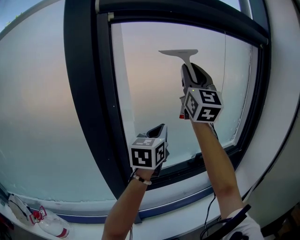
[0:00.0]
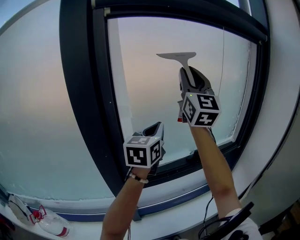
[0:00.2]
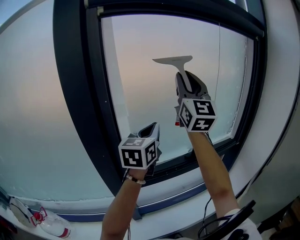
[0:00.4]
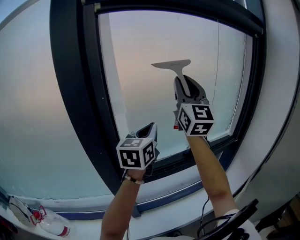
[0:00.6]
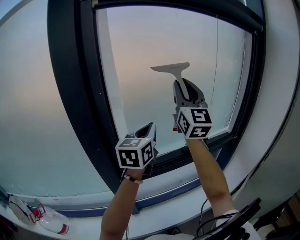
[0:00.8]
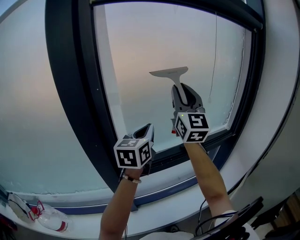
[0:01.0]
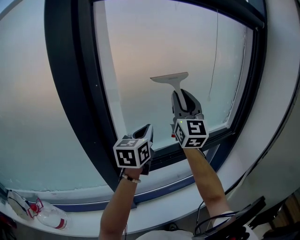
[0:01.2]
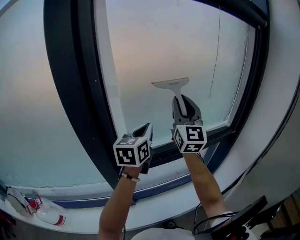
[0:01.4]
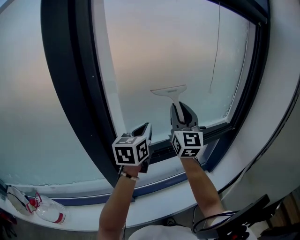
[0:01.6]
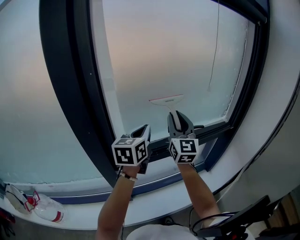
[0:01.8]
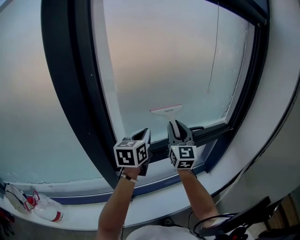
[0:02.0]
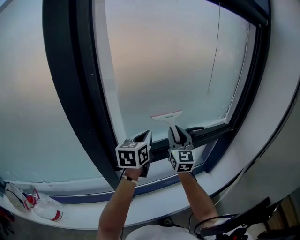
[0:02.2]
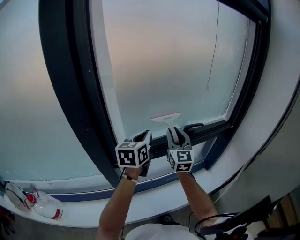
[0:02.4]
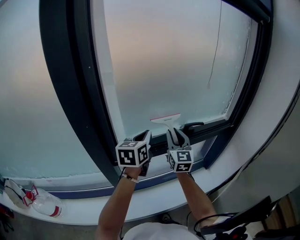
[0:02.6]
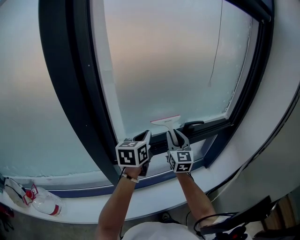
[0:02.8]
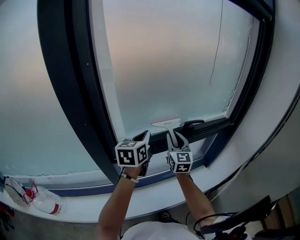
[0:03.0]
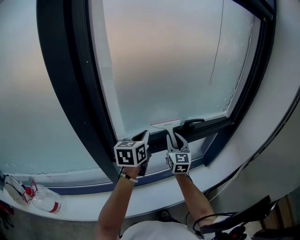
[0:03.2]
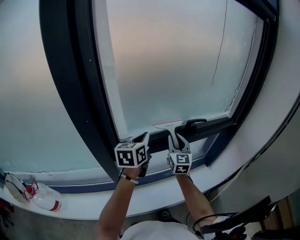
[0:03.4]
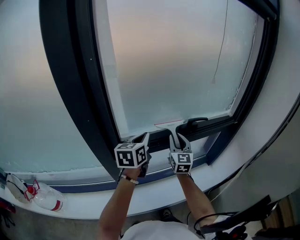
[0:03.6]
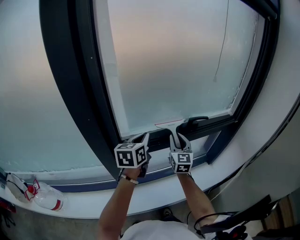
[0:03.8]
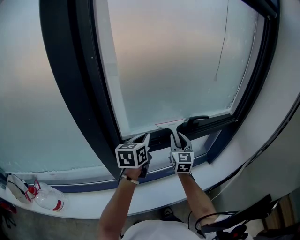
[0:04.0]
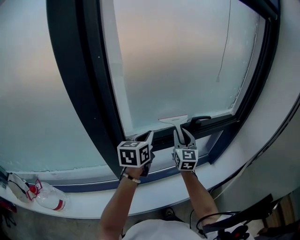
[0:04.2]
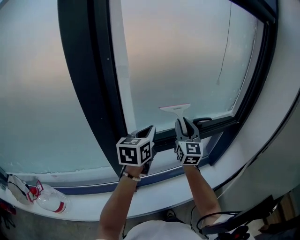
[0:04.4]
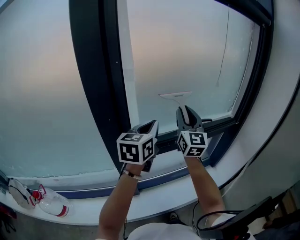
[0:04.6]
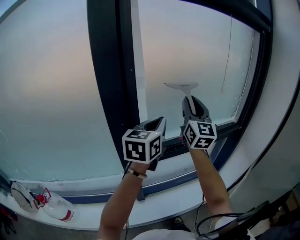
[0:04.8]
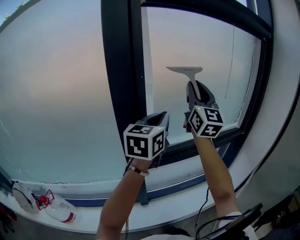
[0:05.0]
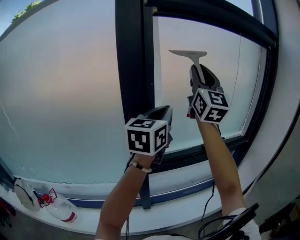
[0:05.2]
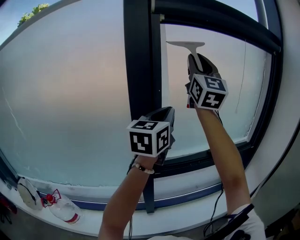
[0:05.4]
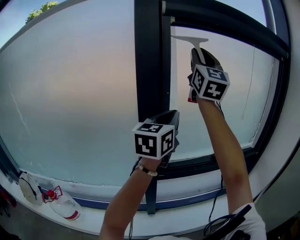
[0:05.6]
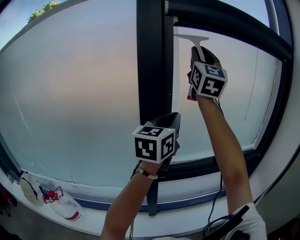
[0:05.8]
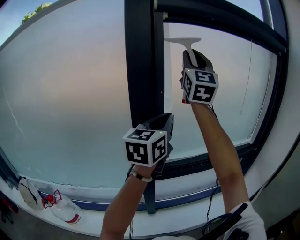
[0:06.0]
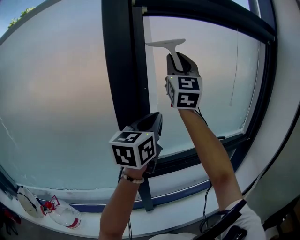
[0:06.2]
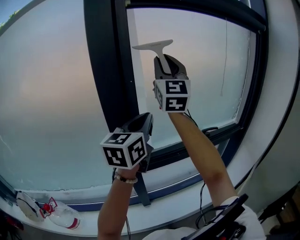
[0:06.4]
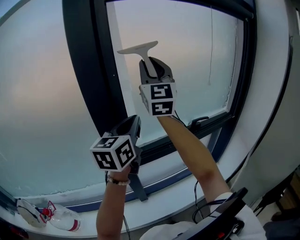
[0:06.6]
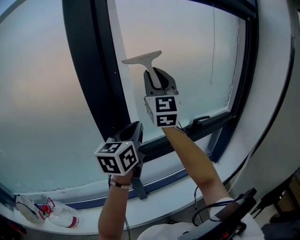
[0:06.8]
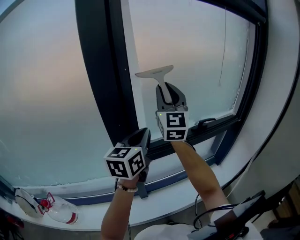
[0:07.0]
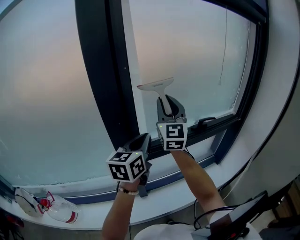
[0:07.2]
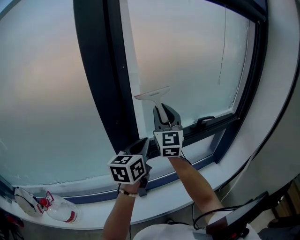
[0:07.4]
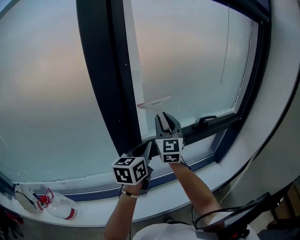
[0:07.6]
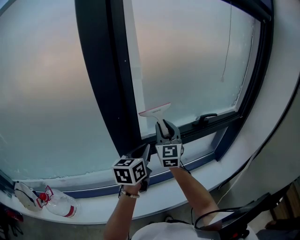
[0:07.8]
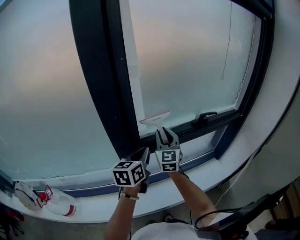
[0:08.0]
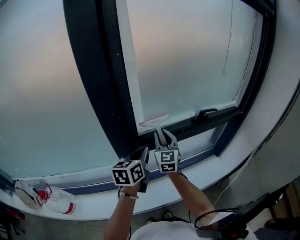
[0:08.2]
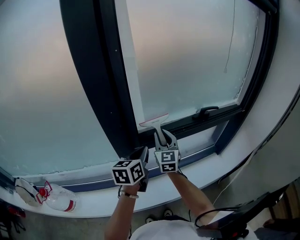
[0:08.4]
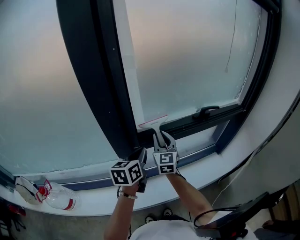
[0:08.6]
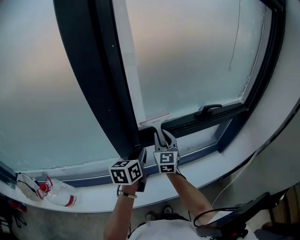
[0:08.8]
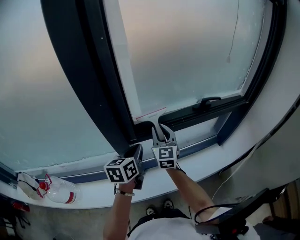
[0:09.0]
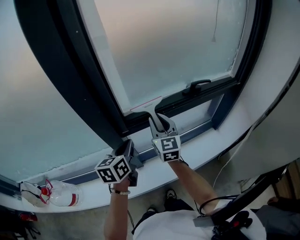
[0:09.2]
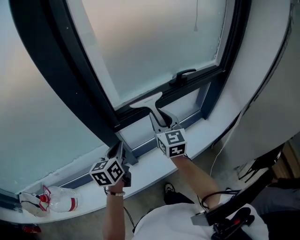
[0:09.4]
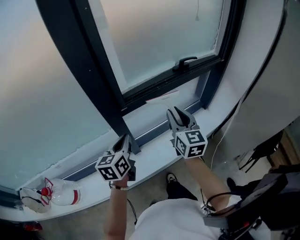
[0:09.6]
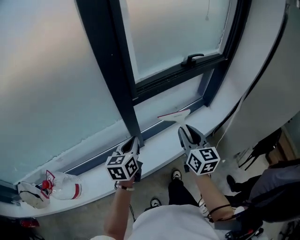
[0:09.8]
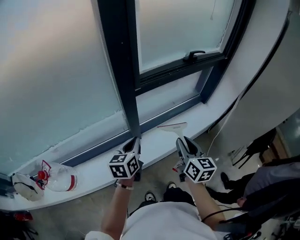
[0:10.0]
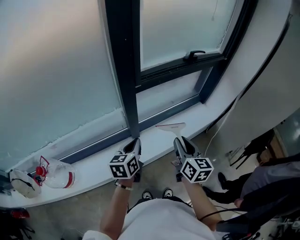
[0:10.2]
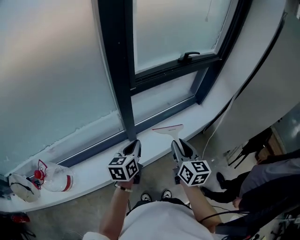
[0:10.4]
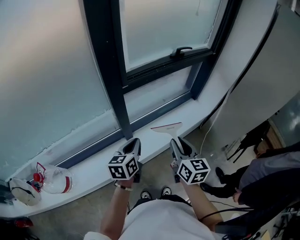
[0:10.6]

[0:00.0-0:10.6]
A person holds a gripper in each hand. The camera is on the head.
0:00.0 to 0:01.6: The left gripper is displaced downward by some 10 cm, while the right gripper is displaced downward by approximately 25 cm.
0:01.6 to 0:03.0: The right gripper shifts some 20 cm downward, and rotates roughly 20 degrees. Meanwhile the left gripper goes about 10 cm downward.
0:03.0 to 0:04.6: The right gripper travels upward by approximately 15 cm, while the left gripper is displaced upward and backward by approximately 10 cm.
0:04.6 to 0:06.0: The left gripper travels upward and to the left by some 20 cm, while the right gripper heads upward, covering roughly 35 cm, and rotates some 20 degrees.
0:06.0 to 0:07.6: The right gripper travels downward by roughly 35 cm, and changes its angle by some 20 degrees. Meanwhile the left gripper moves downward, roughly 25 cm, and turns by roughly 20 degrees.
0:07.6 to 0:09.0: The two grippers go roughly 15 cm downward.
0:09.0 to 0:10.6: The left gripper heads backward, covering roughly 25 cm. Meanwhile the right gripper heads backward, covering some 35 cm, and turns by some 30 degrees.

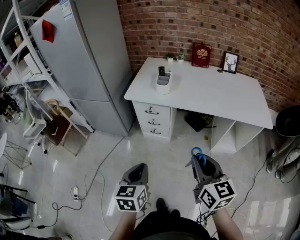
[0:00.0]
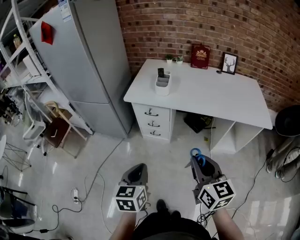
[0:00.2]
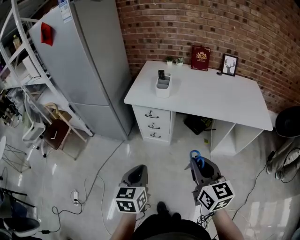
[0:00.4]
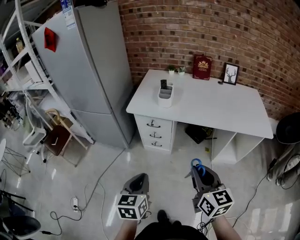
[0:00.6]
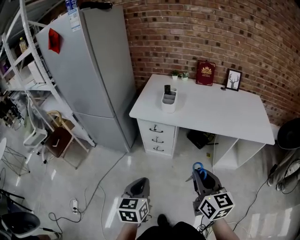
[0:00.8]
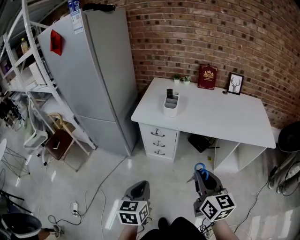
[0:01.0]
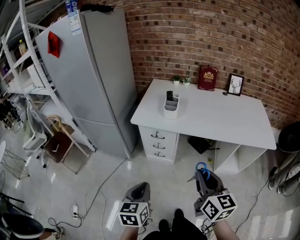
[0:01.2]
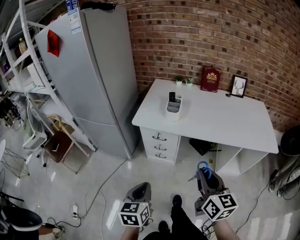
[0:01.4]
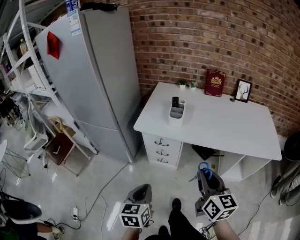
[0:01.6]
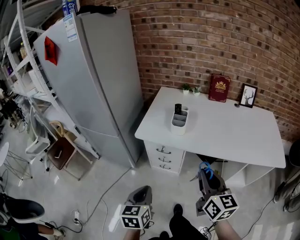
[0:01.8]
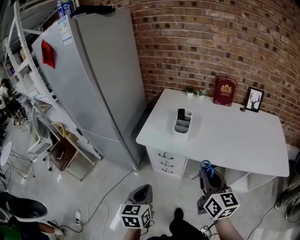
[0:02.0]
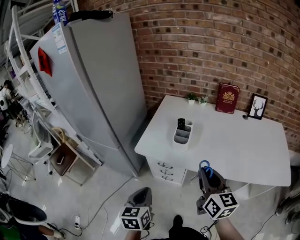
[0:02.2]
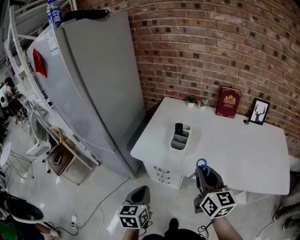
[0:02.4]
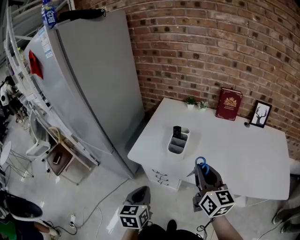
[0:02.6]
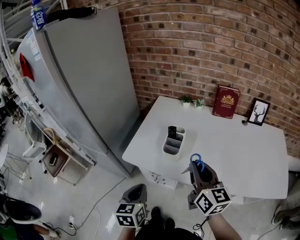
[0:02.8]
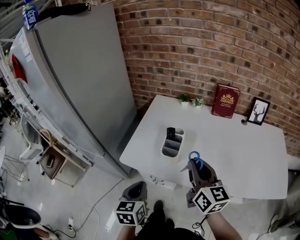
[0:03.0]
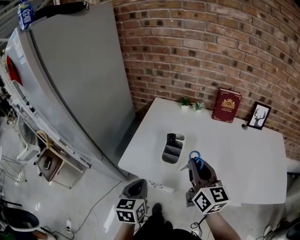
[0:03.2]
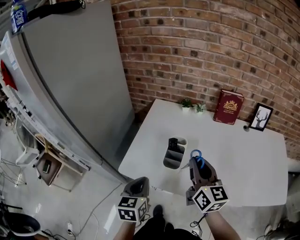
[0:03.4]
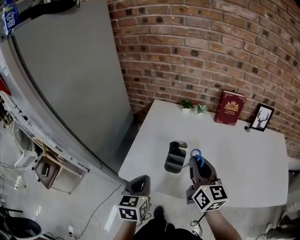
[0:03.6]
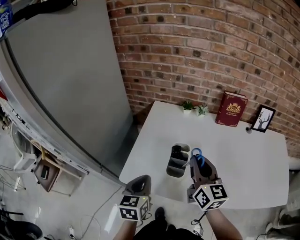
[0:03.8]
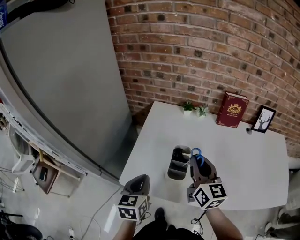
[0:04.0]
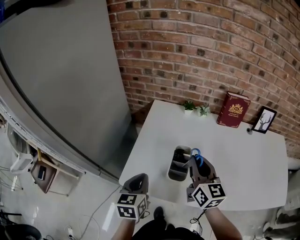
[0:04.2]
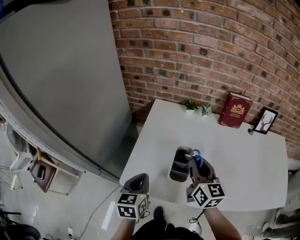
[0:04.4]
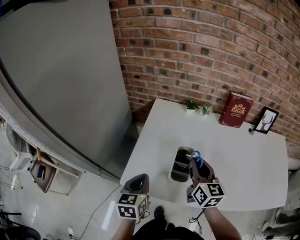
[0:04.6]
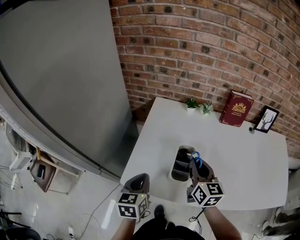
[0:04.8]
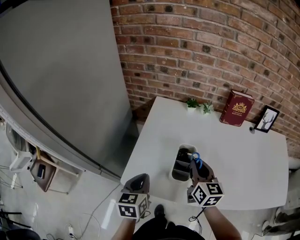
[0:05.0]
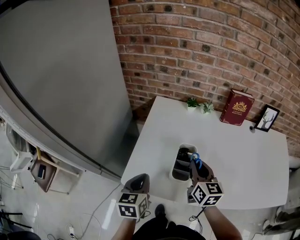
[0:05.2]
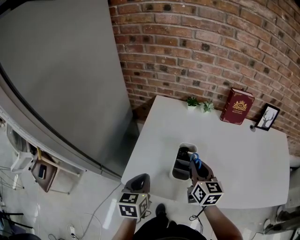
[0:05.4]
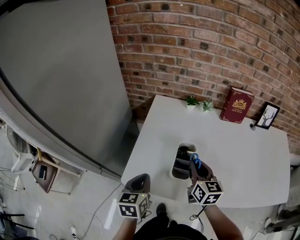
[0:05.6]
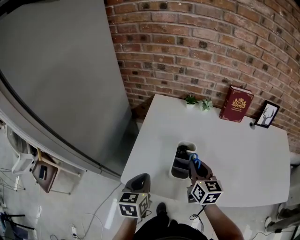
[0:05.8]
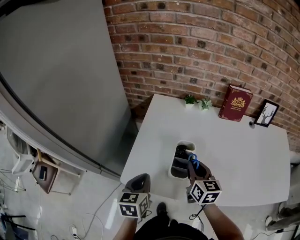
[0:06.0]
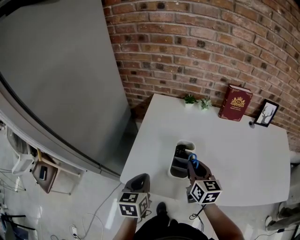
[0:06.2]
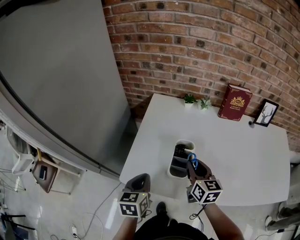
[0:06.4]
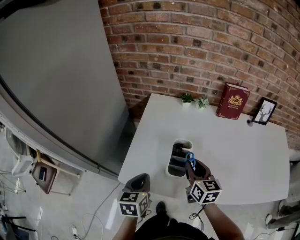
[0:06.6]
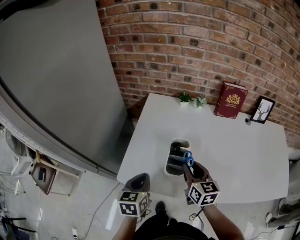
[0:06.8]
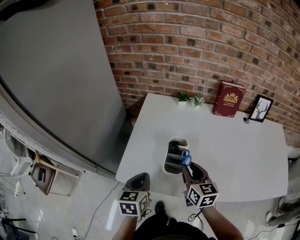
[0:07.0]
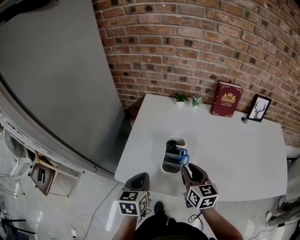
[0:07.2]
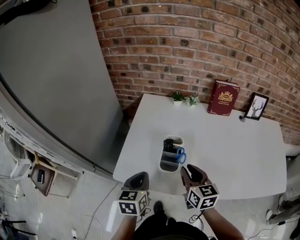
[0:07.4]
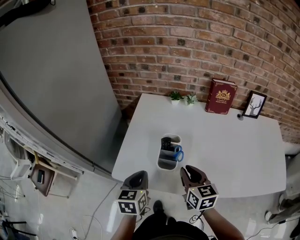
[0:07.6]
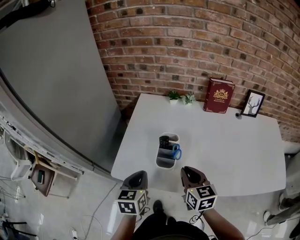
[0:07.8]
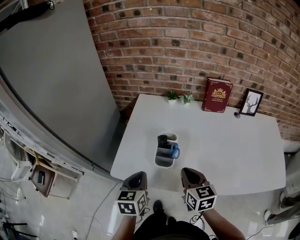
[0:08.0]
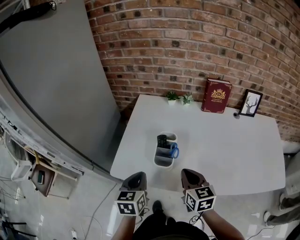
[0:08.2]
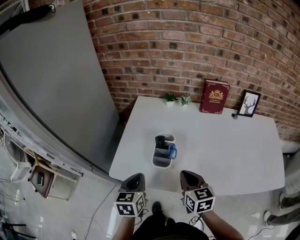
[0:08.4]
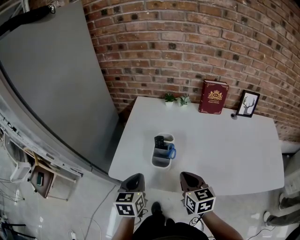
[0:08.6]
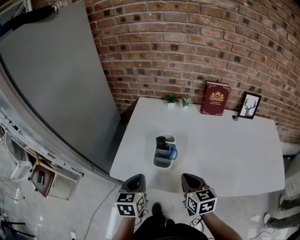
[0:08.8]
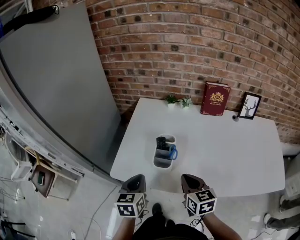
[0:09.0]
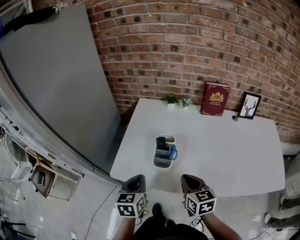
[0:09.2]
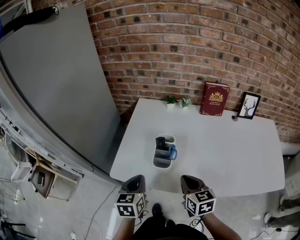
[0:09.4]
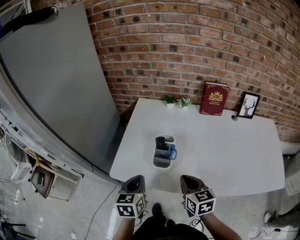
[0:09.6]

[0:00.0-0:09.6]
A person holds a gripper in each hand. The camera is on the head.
0:00.0 to 0:01.6: The two grippers go roughly 10 cm forward.
0:01.6 to 0:03.2: The two grippers go some 35 cm forward.
0:03.2 to 0:04.8: The left gripper travels forward by approximately 15 cm. Meanwhile the right gripper moves forward and downward, some 15 cm.
0:04.8 to 0:06.4: The grippers make only small movements.
0:06.4 to 0:08.0: The left gripper moves roughly 5 cm; the right gripper is displaced backward by approximately 10 cm.
0:08.0 to 0:09.6: The grippers stay close to where they were, moving slightly.

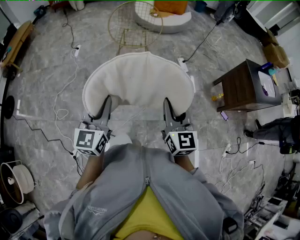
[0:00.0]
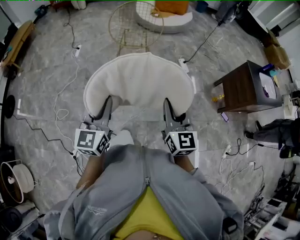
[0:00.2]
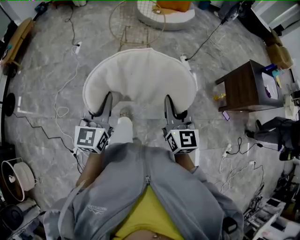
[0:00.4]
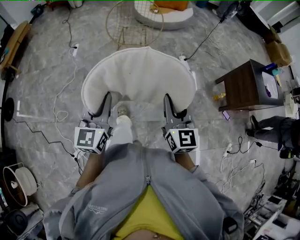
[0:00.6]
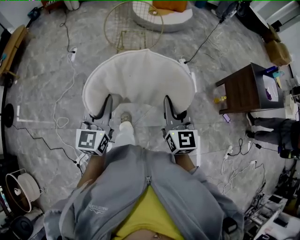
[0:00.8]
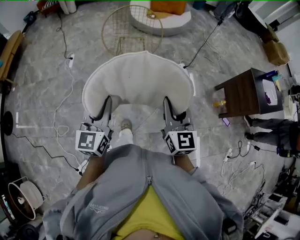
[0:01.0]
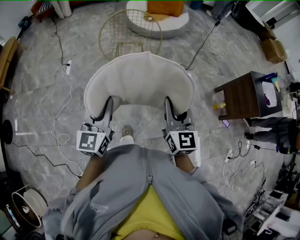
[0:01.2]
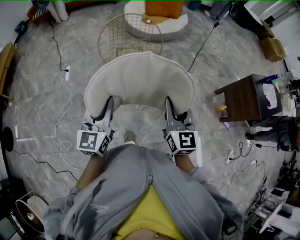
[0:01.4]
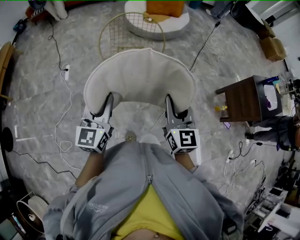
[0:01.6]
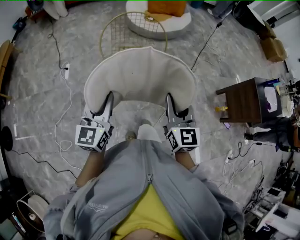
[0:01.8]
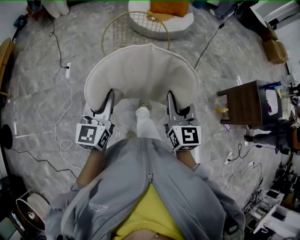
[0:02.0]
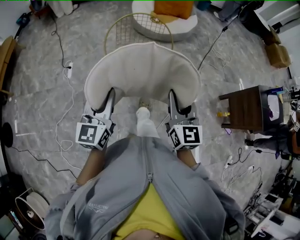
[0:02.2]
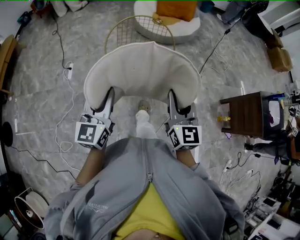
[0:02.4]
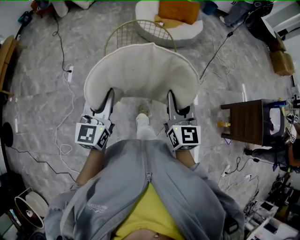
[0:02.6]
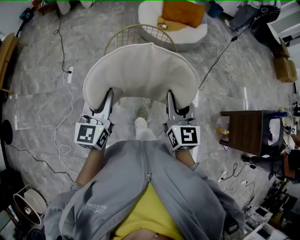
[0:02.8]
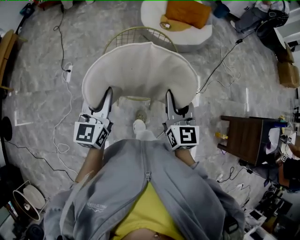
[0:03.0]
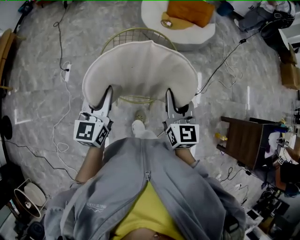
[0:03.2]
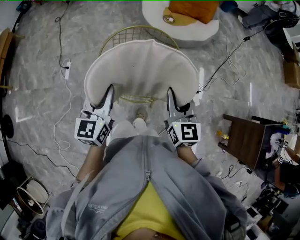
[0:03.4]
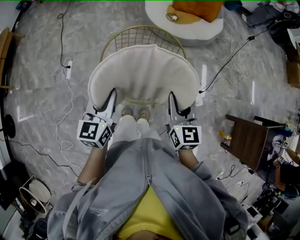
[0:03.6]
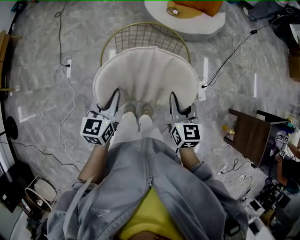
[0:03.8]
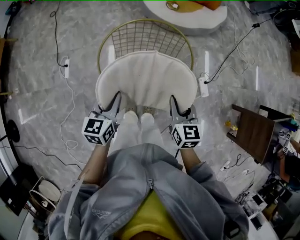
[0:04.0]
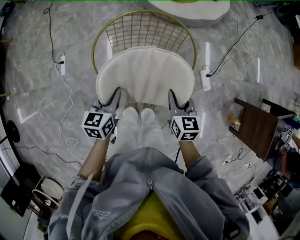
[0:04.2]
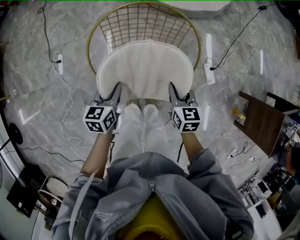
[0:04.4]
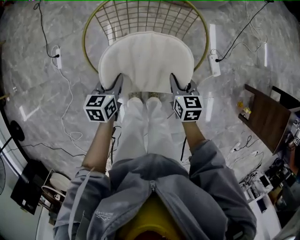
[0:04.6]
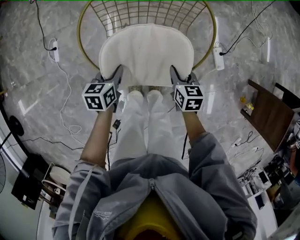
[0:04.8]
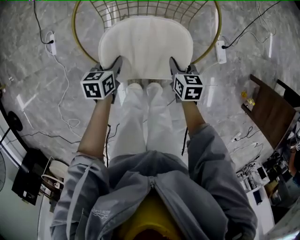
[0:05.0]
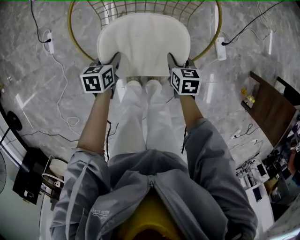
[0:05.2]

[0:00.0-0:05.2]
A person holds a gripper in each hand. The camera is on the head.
0:00.0 to 0:01.8: The two grippers go roughly 35 cm forward.
0:01.8 to 0:03.4: The two grippers go roughly 35 cm forward.
0:03.4 to 0:05.2: The grippers both shift downward by about 40 cm. The left gripper angles its fingers downward, by about 40 degrees; the right gripper angles its fingers downward, by approximately 40 degrees.
